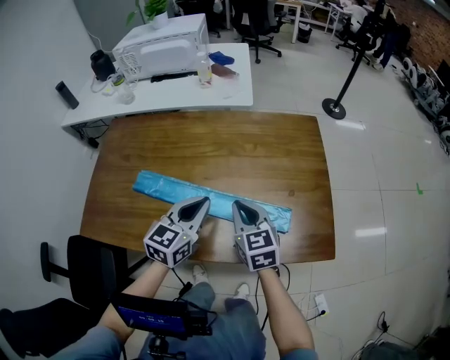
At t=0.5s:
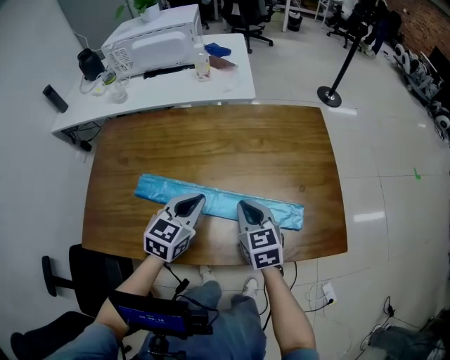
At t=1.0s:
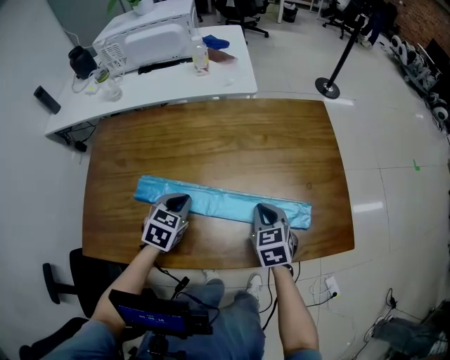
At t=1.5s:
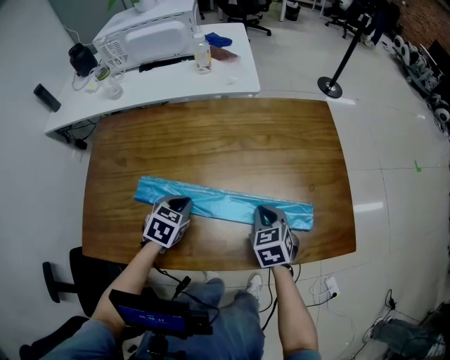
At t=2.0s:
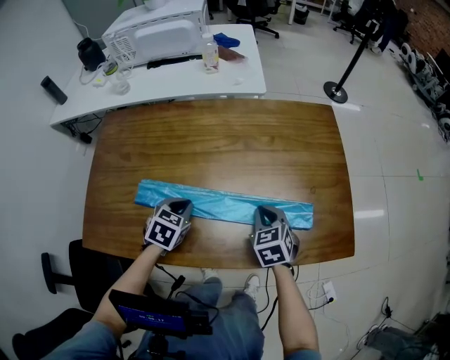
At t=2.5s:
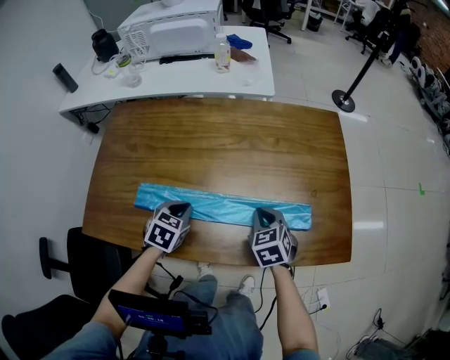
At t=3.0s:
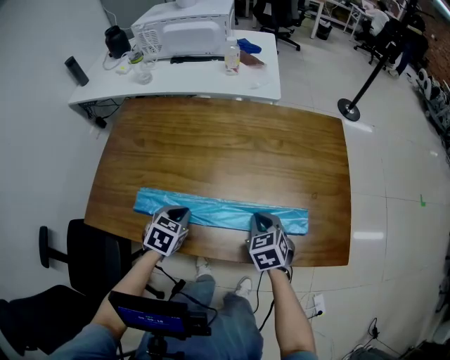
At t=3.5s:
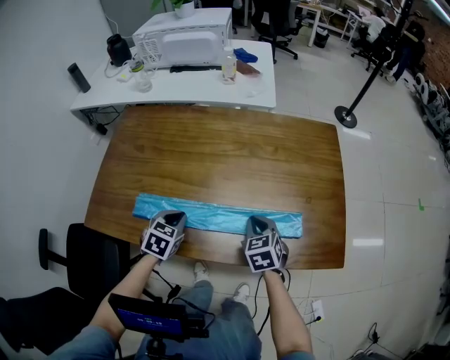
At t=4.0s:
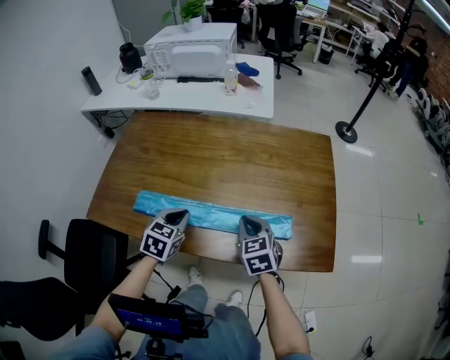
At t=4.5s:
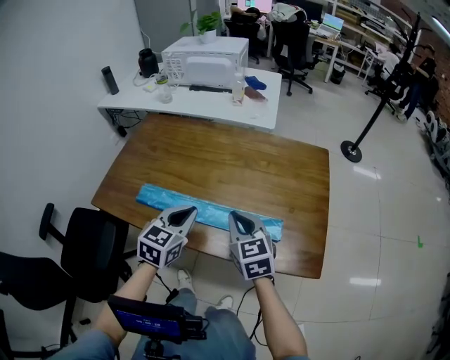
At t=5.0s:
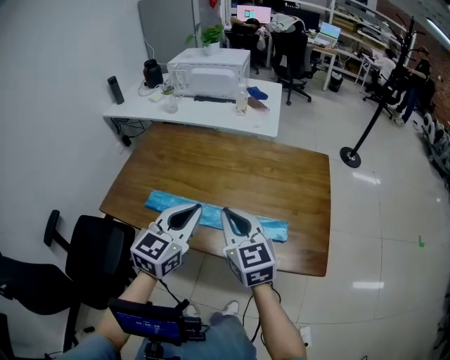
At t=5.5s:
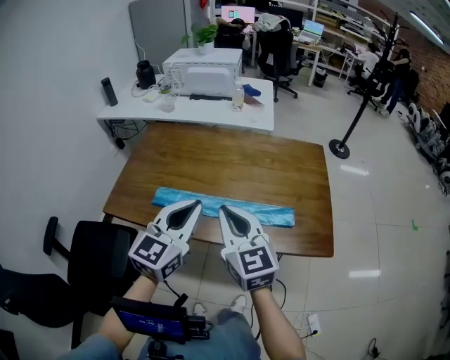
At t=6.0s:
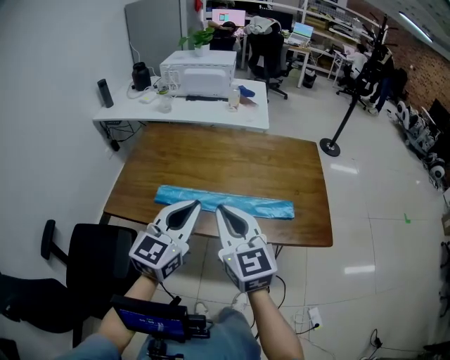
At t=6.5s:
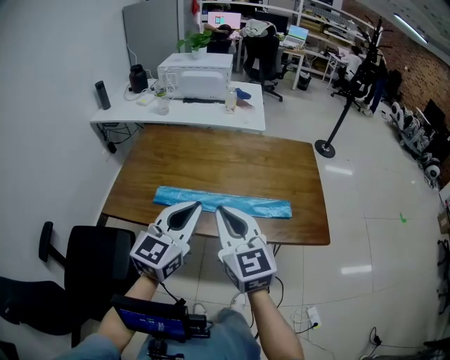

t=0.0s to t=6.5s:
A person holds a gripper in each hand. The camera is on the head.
t=0.0s to t=2.0s: The right gripper moves downward, approximately 10 cm, and changes its angle by about 30 degrees; the left gripper moves downward and to the left, about 20 cm, and angles its fingers downward, by approximately 40 degrees.
t=2.0s to t=4.5s: The right gripper travels upward and backward by roughly 15 cm, and swivels approximately 30 degrees. Meanwhile the left gripper goes approximately 20 cm upward, backward and to the right, and changes its angle by some 30 degrees.
t=4.5s to t=6.5s: The right gripper goes about 25 cm upward, to the left and backward. The left gripper shifts roughly 20 cm upward, backward and to the left, and changes its angle by some 30 degrees.

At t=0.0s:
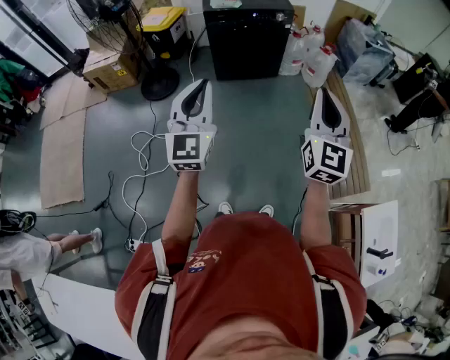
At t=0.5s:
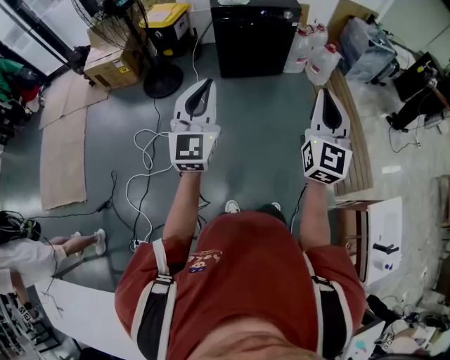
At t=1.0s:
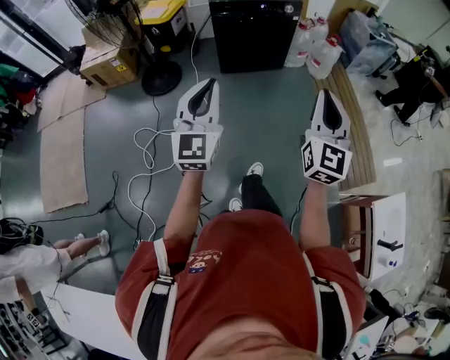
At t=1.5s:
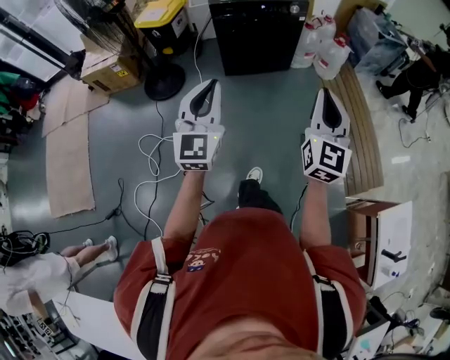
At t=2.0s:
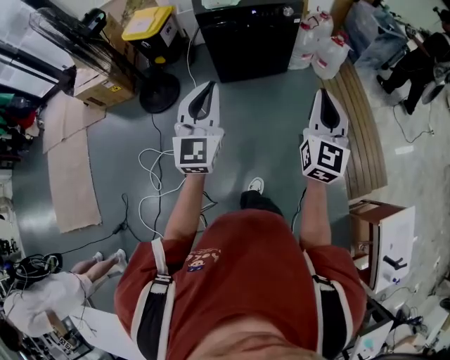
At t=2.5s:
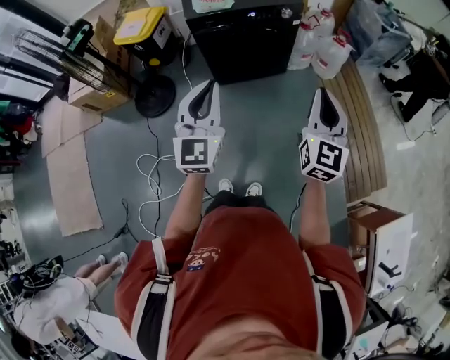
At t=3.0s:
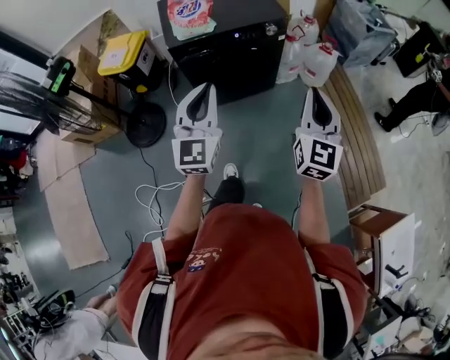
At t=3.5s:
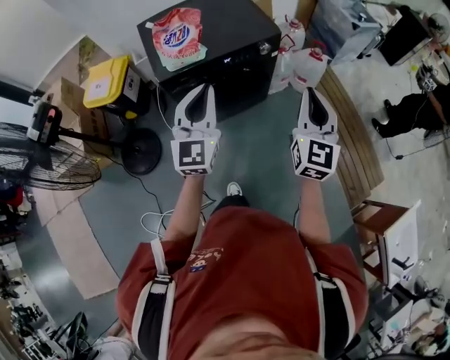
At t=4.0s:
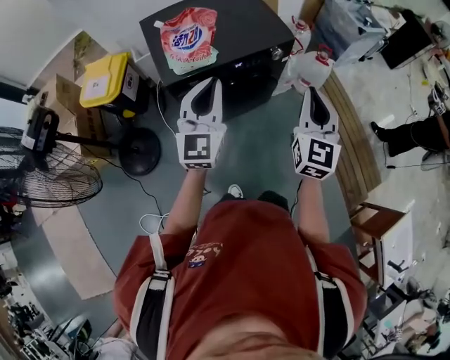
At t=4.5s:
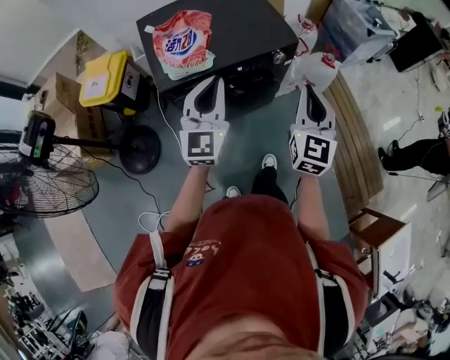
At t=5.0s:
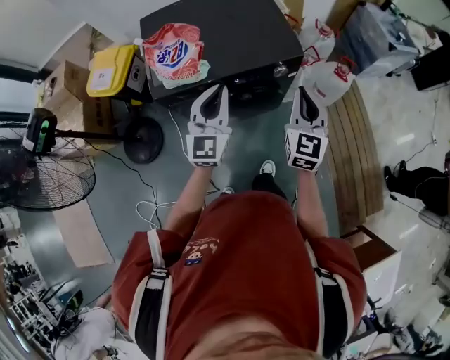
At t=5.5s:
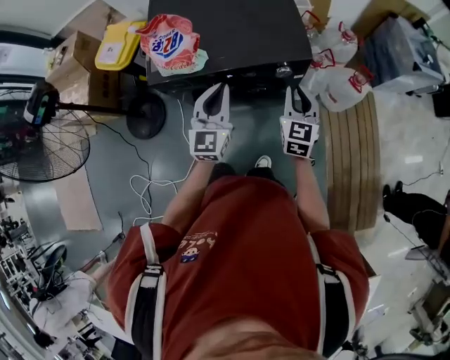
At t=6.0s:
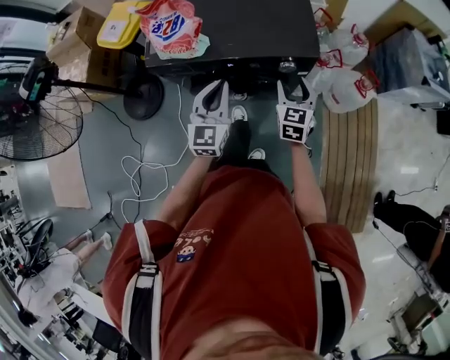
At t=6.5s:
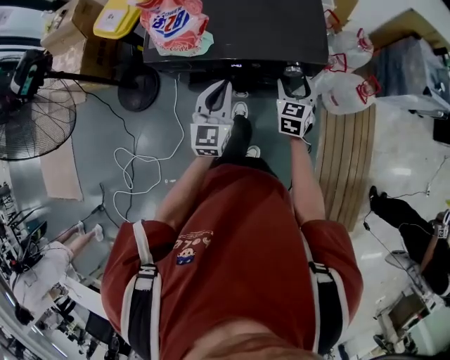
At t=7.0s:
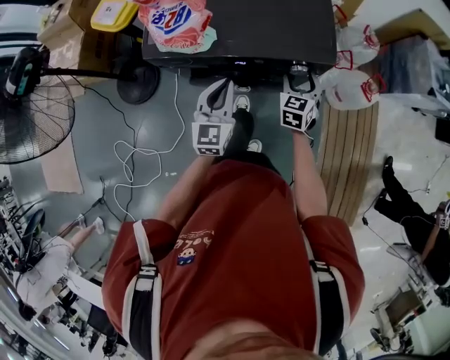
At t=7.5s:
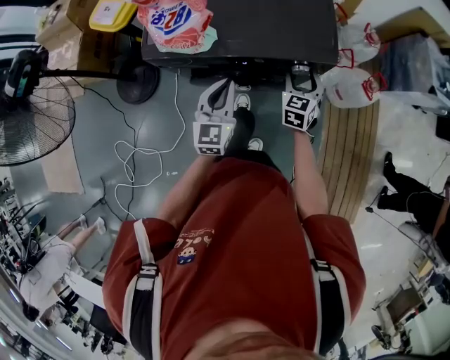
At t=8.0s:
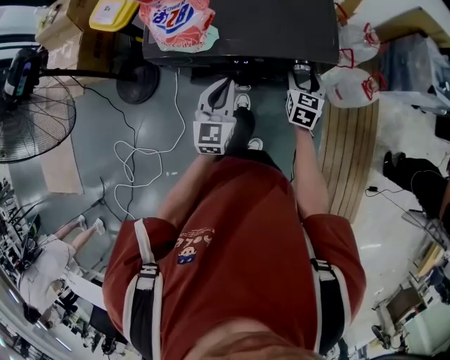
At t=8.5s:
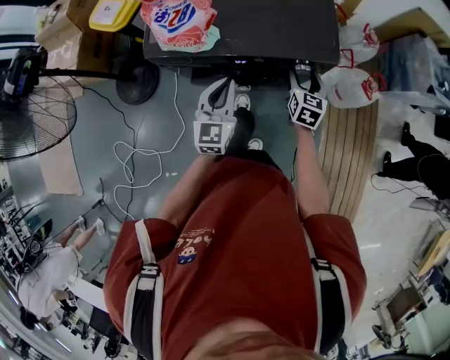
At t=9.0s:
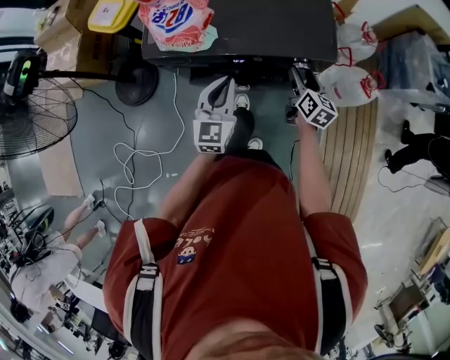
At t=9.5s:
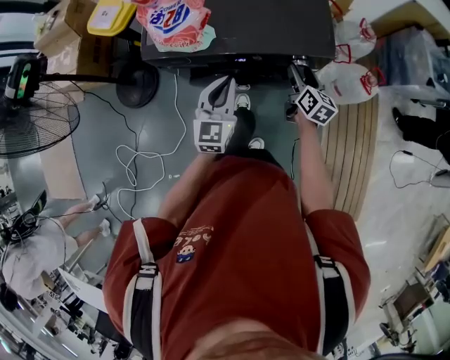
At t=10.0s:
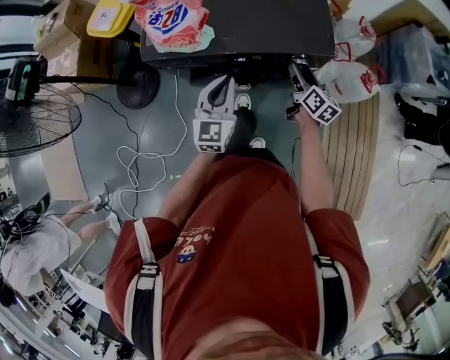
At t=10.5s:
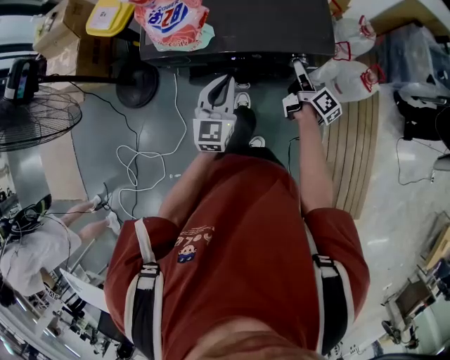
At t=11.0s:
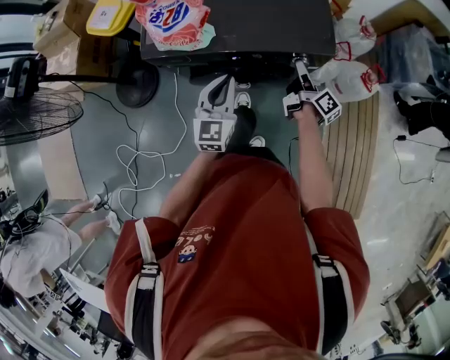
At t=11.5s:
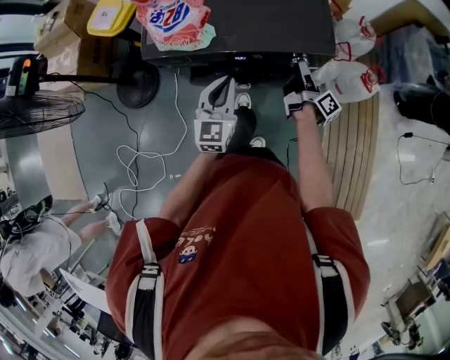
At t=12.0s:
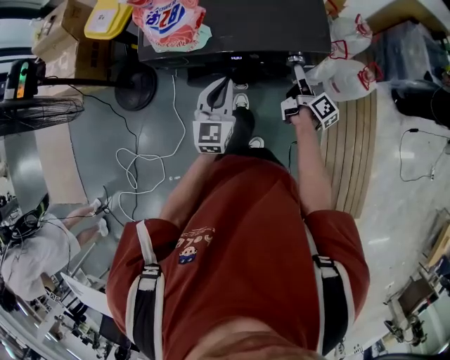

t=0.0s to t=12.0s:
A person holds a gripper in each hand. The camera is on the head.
t=0.0s to t=2.0s: The two grippers go about 25 cm forward.
t=2.0s to t=4.0s: The two grippers travel together, forward, some 50 cm.
t=4.0s to t=6.0s: The left gripper is displaced downward, forward and to the right by roughly 30 cm, and swivels roughly 30 degrees. Meanwhile the right gripper heads forward and downward, covering about 40 cm, turns by about 30 degrees, and opens its fingers.
t=6.0s to t=8.0s: The left gripper goes some 5 cm downward; the right gripper goes some 10 cm downward and forward.
t=8.0s to t=10.0s: The right gripper changes its angle by approximately 40 degrees.
t=10.0s to t=12.0s: The right gripper turns by about 30 degrees.

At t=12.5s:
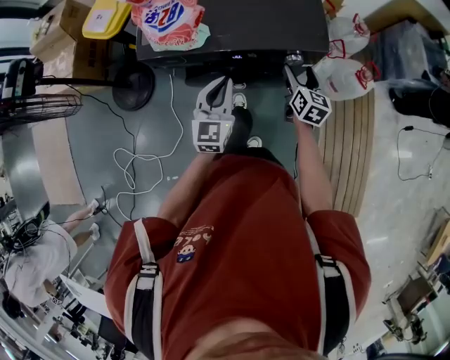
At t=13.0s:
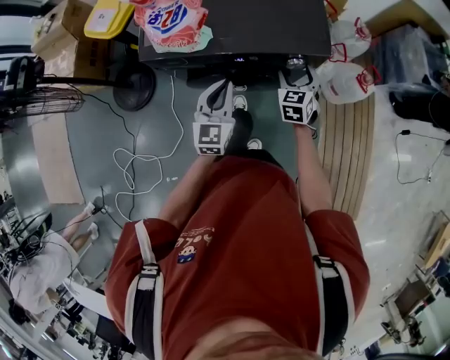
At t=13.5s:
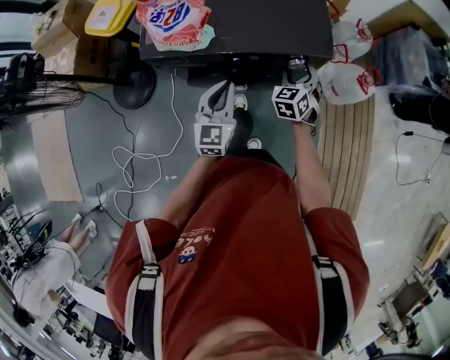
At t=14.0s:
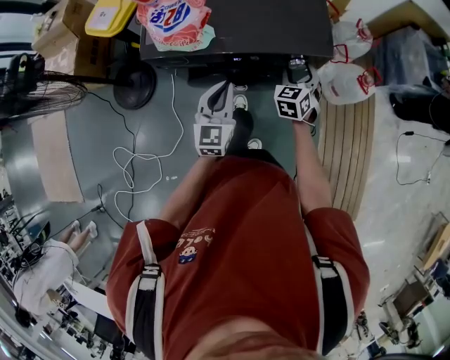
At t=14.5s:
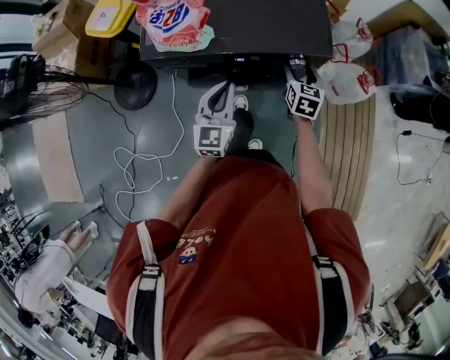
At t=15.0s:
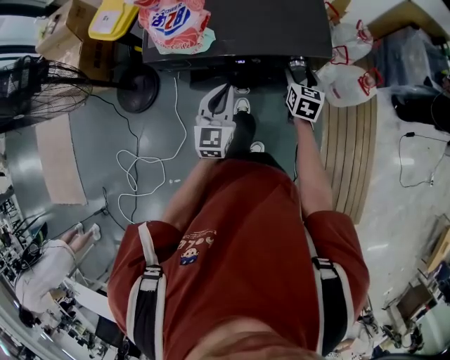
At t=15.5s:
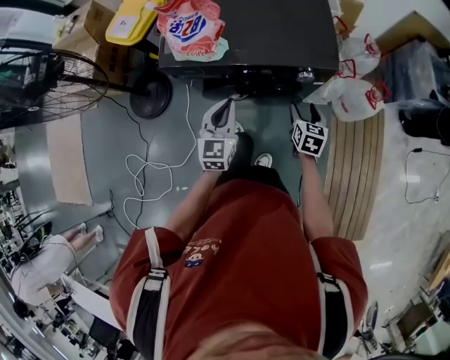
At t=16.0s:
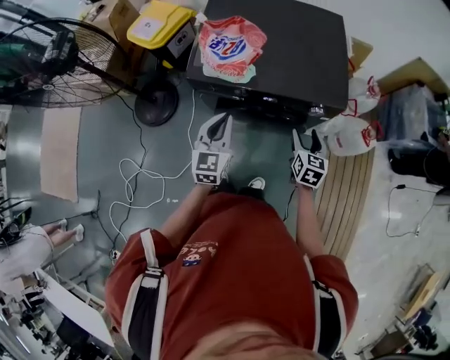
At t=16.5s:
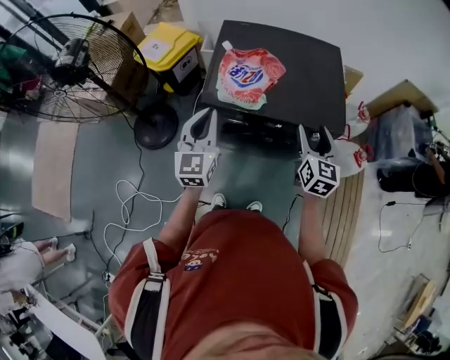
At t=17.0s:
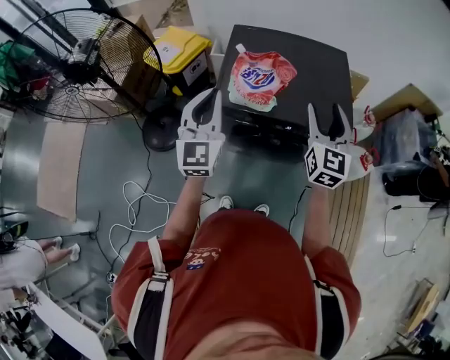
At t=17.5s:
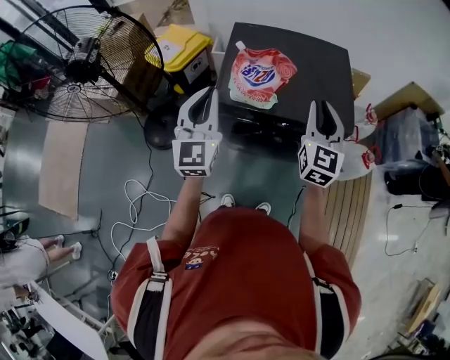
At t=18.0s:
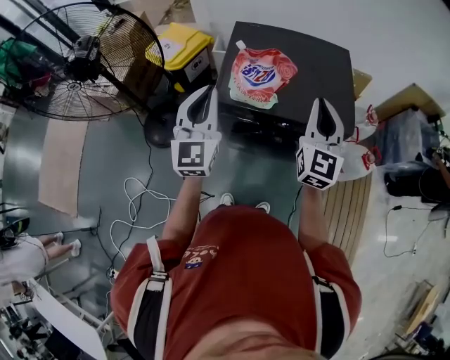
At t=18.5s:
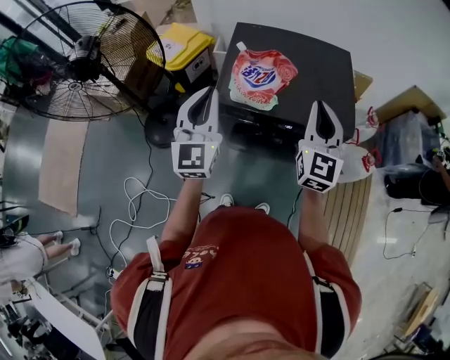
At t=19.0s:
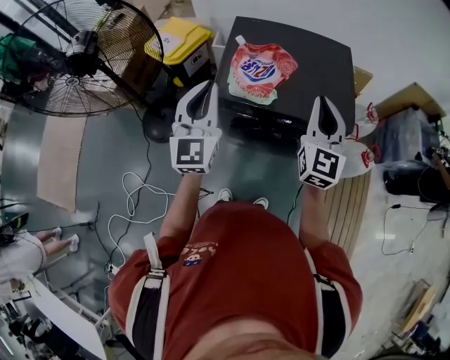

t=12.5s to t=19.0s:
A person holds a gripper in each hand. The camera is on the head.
t=14.5s to t=17.0s: Both grippers travel together upward and to the left, about 40 cm. The left gripper rotates about 20 degrees. The right gripper tilts its fingers about 30 degrees upward.
t=17.0s to t=19.0s: The right gripper closes its fingers.

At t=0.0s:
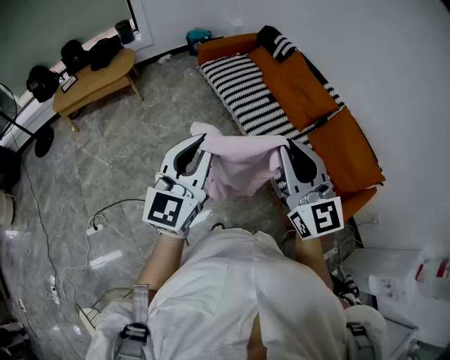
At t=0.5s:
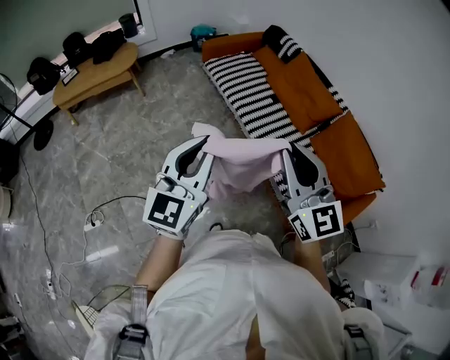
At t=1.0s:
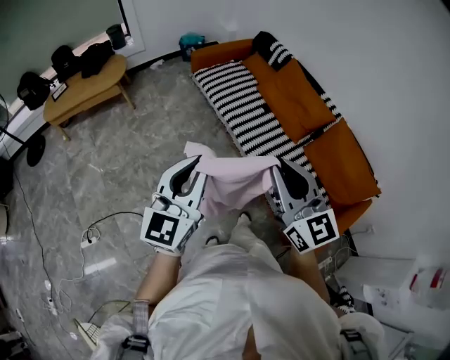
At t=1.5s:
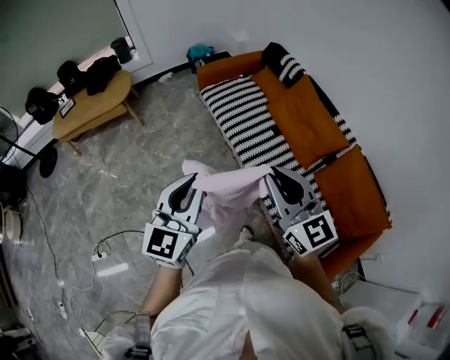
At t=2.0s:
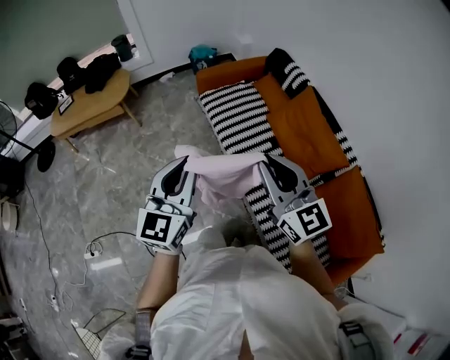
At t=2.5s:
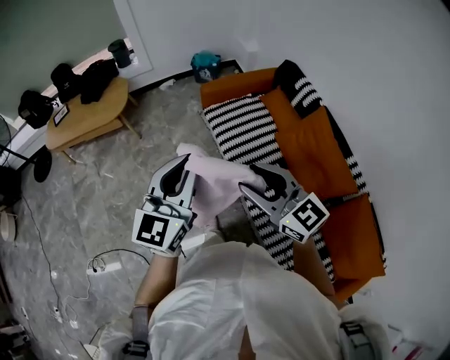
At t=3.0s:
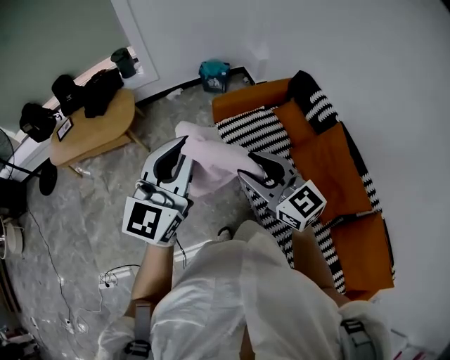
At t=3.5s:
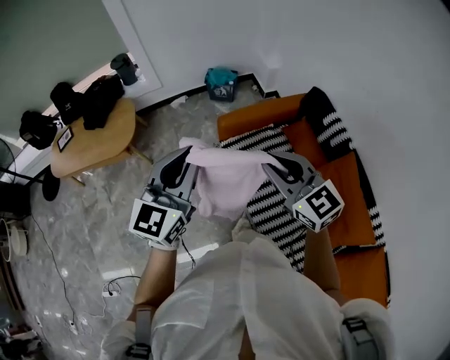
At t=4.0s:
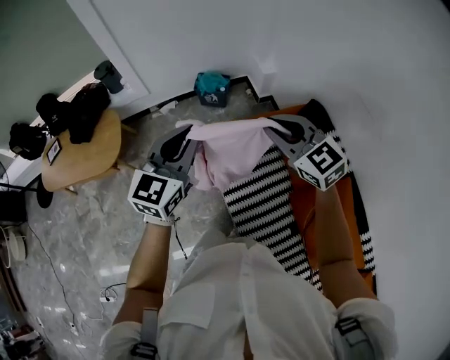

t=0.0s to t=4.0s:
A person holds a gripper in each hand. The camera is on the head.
t=0.0s to t=2.0s: The grippers both shift forward by roughly 30 cm.
t=2.0s to t=4.0s: The two grippers travel together, forward, roughly 70 cm. The right gripper rotates roughly 30 degrees, and opens and closes again.
